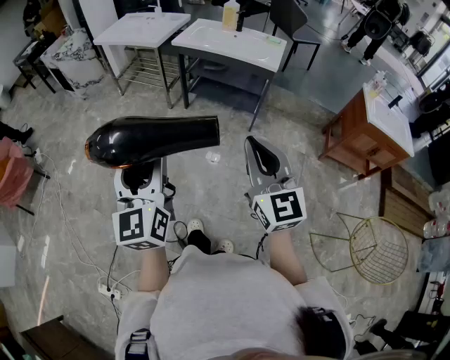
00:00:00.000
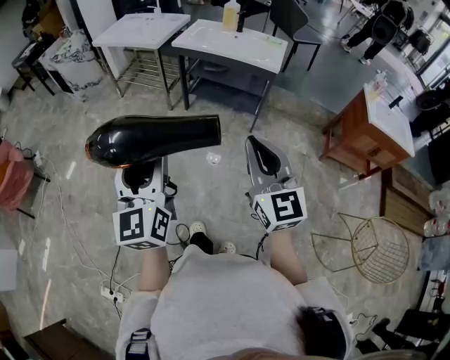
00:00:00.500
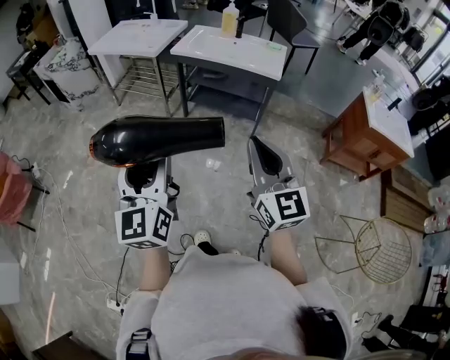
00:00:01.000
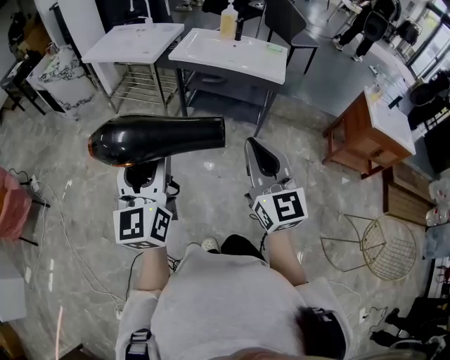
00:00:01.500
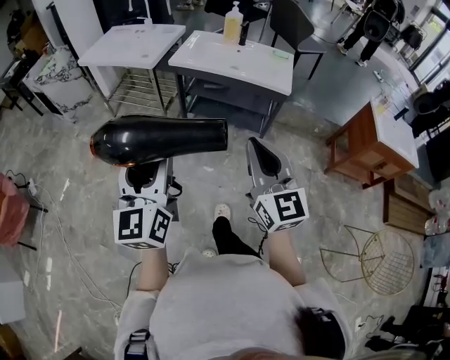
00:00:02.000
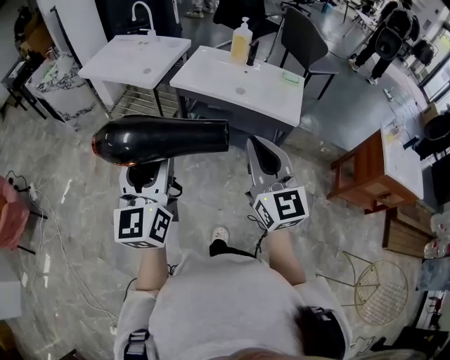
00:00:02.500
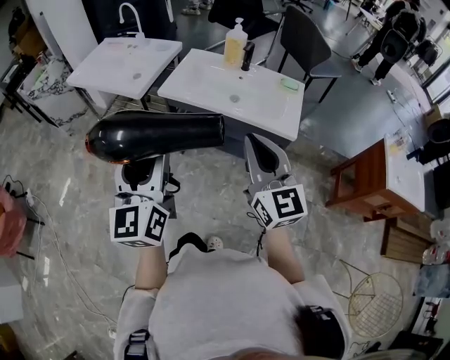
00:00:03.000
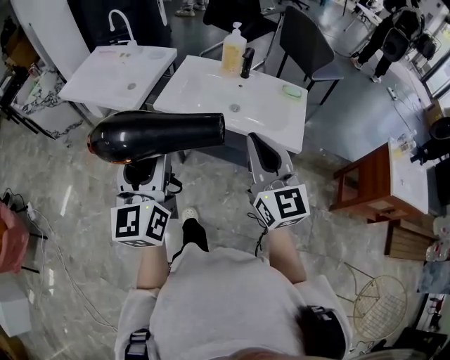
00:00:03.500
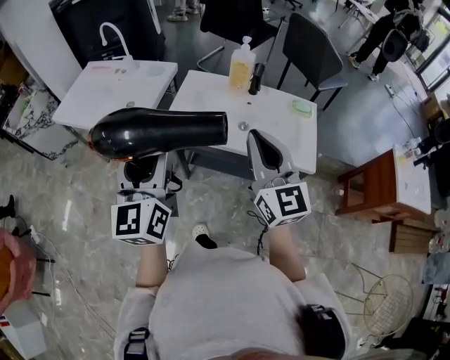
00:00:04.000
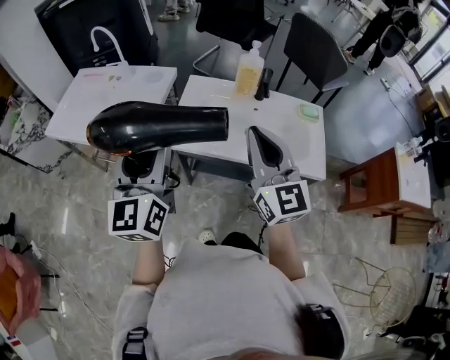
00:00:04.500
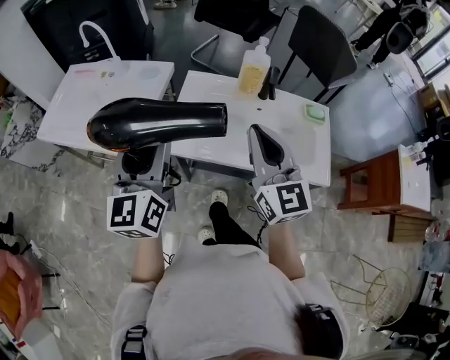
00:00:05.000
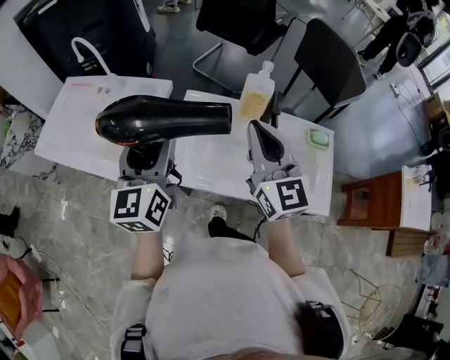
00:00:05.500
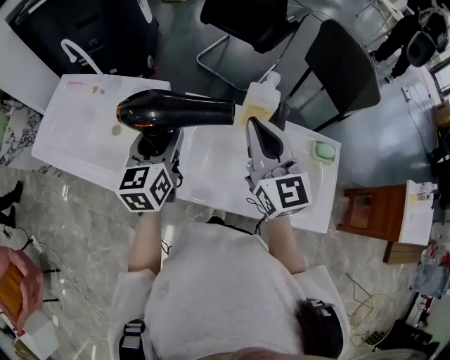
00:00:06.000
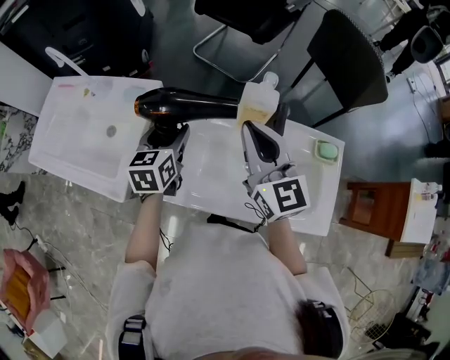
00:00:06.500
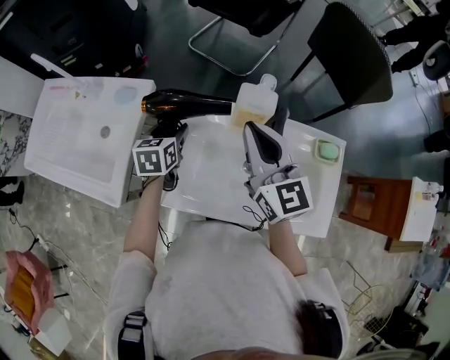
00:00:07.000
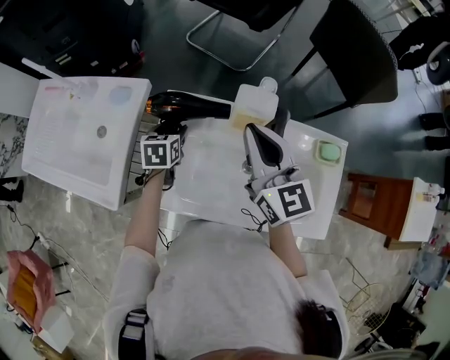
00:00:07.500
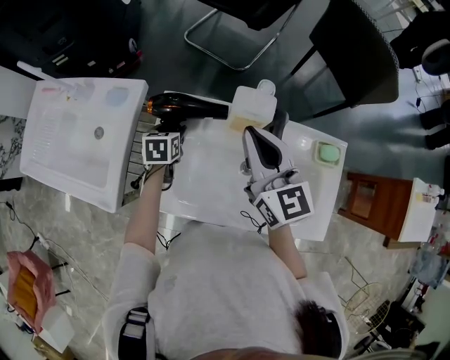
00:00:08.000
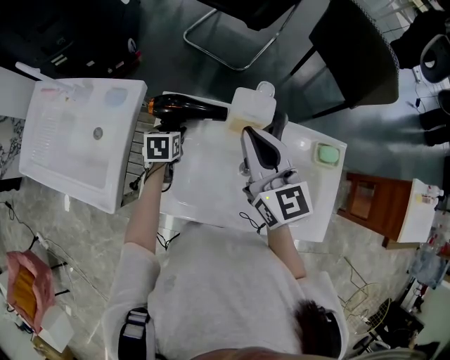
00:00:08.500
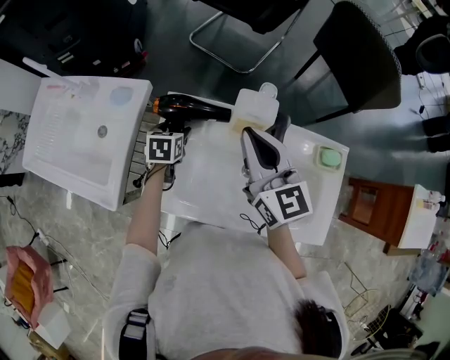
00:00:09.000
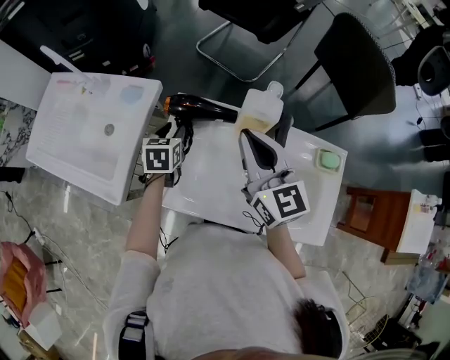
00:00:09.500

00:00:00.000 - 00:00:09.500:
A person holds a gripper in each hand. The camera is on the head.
00:00:00.000 - 00:00:02.000: Both grippers move forward, approximately 20 cm.
00:00:02.000 - 00:00:04.000: Both grippers are carried forward, about 50 cm.
00:00:04.000 - 00:00:05.500: The two grippers go some 25 cm forward.
00:00:05.500 - 00:00:07.500: The right gripper is displaced forward, downward and to the right by approximately 20 cm, while the left gripper travels downward and forward by some 35 cm, and tilts its fingers some 50 degrees downward.
00:00:07.500 - 00:00:09.500: The grippers stay close to where they were, moving slightly.

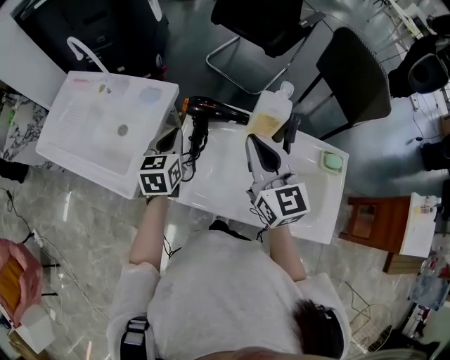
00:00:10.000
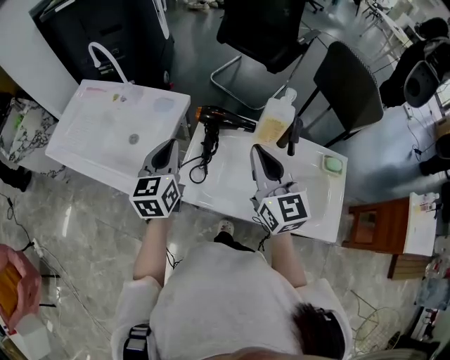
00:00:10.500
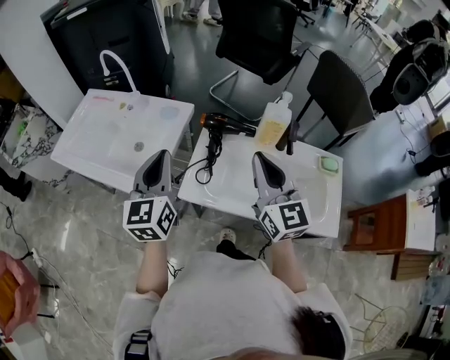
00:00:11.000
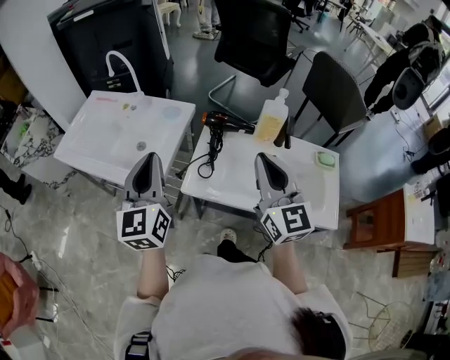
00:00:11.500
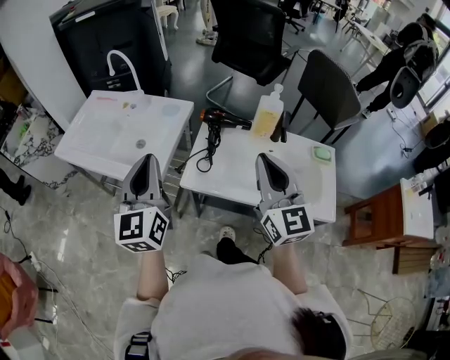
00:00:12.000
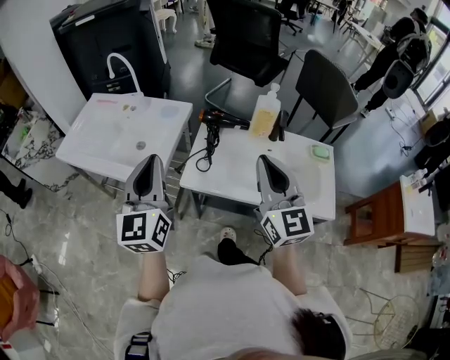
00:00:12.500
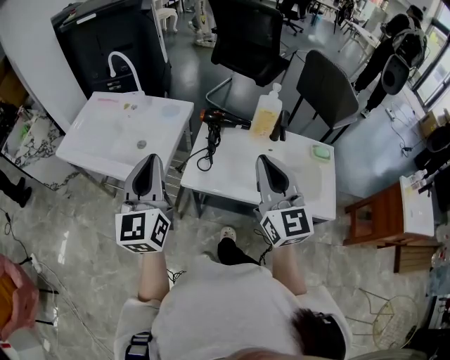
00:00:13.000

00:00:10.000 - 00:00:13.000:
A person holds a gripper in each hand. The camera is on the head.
00:00:10.000 - 00:00:11.500: The left gripper heads upward, backward and to the left, covering some 30 cm, and angles its fingers upward, by roughly 30 degrees; the right gripper travels backward, upward and to the left by about 20 cm.
00:00:11.500 - 00:00:13.000: The two grippers go approximately 5 cm backward.

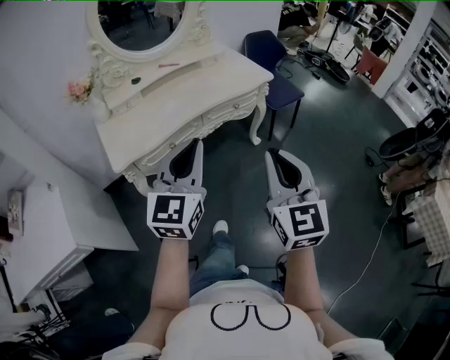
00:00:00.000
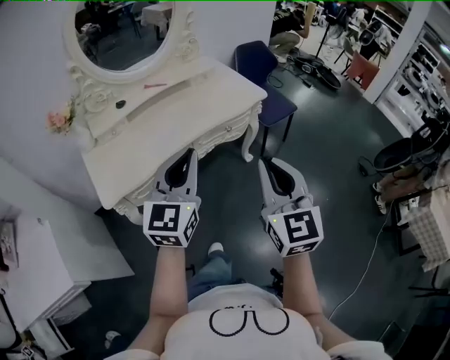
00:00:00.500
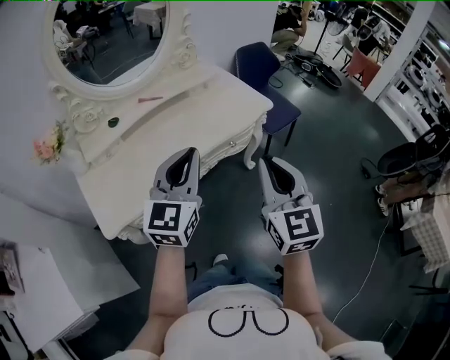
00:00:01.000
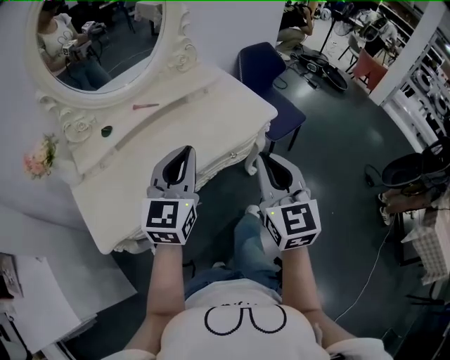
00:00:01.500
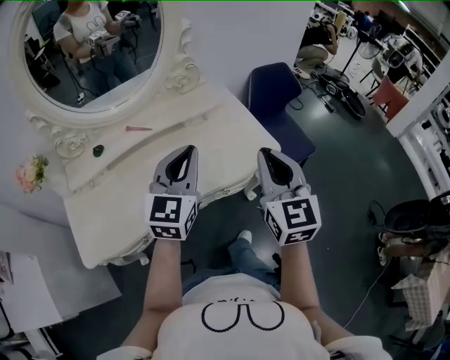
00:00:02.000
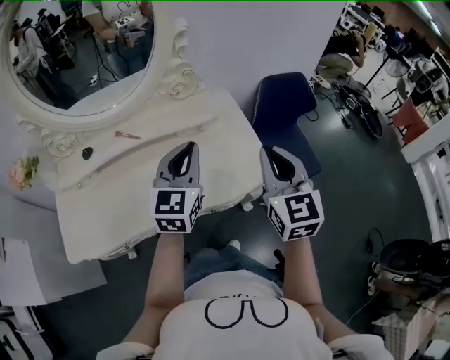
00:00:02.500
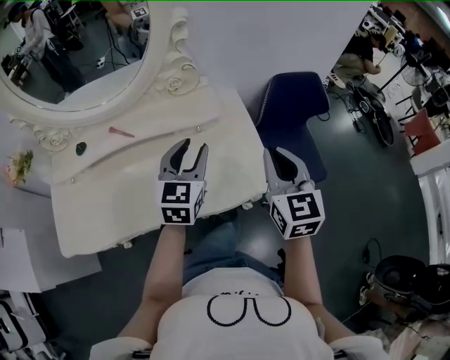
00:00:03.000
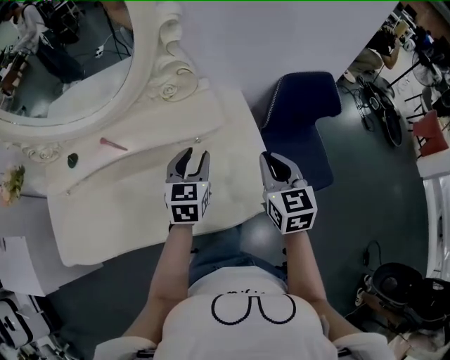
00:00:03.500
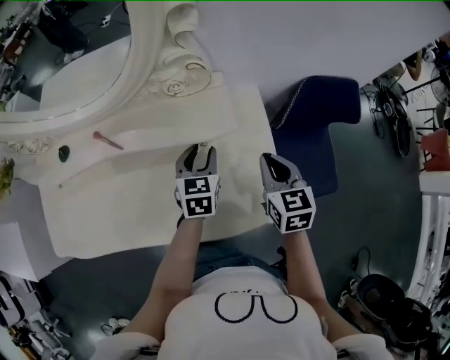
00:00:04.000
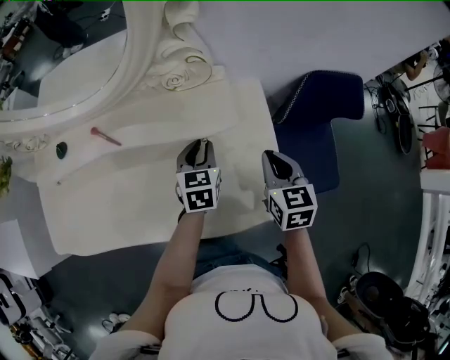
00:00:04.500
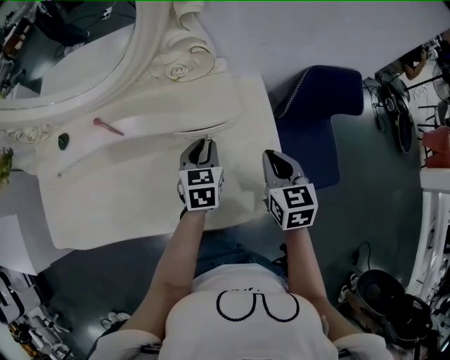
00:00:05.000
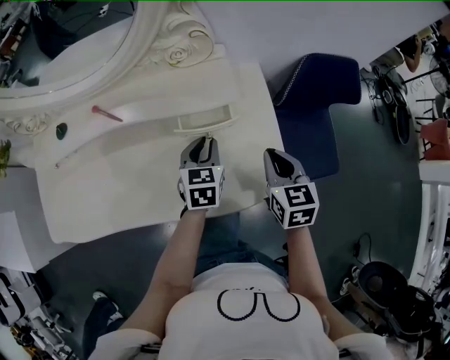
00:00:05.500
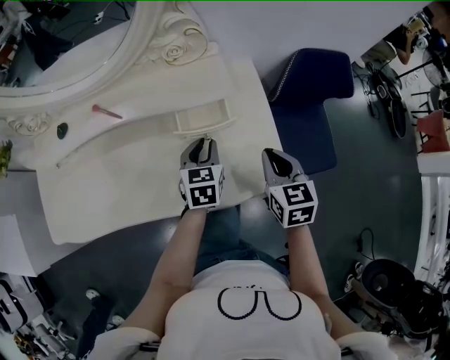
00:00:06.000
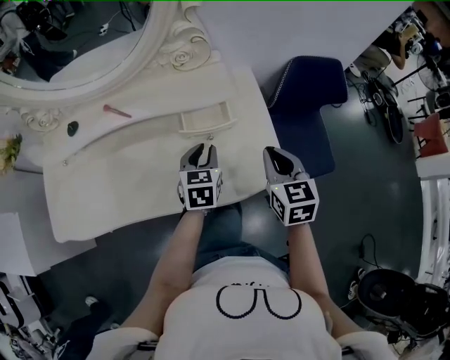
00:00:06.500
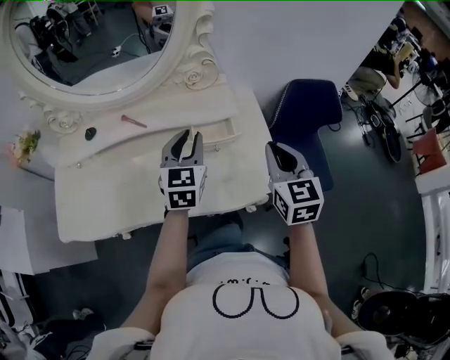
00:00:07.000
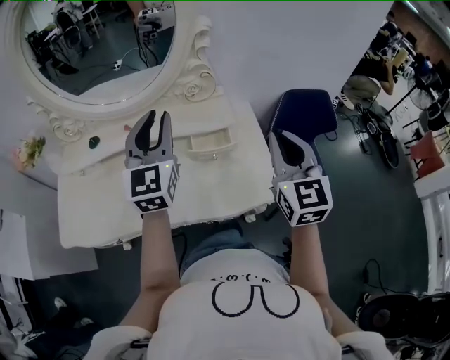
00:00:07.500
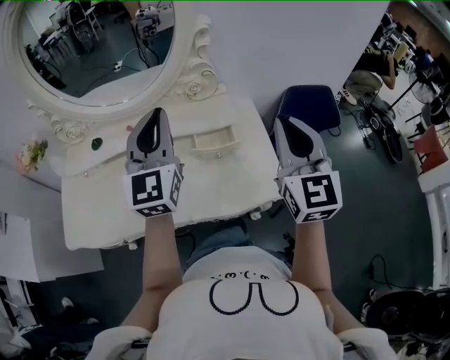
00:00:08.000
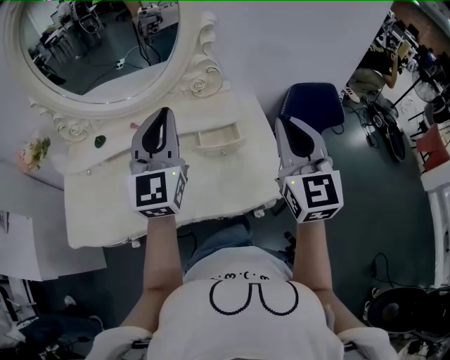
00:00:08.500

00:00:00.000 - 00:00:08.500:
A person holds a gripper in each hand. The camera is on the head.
00:00:00.000 - 00:00:02.000: Both grippers are carried forward, approximately 50 cm.
00:00:02.000 - 00:00:04.000: The two grippers go approximately 40 cm forward and downward. The left gripper tips its fingers downward by about 30 degrees, and opens; the right gripper turns by about 40 degrees.
00:00:04.000 - 00:00:06.500: Both grippers travel together backward, approximately 10 cm.
00:00:06.500 - 00:00:08.500: The two grippers go approximately 25 cm upward. The right gripper tilts its fingers about 30 degrees upward, while the left gripper tips its fingers upward by roughly 40 degrees, and closes its fingers.

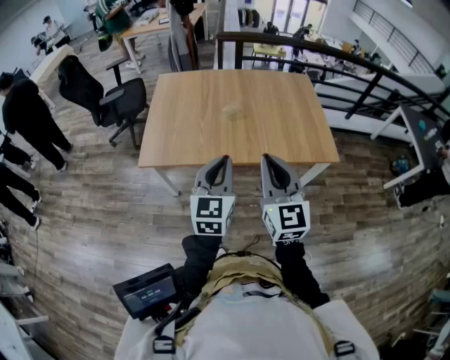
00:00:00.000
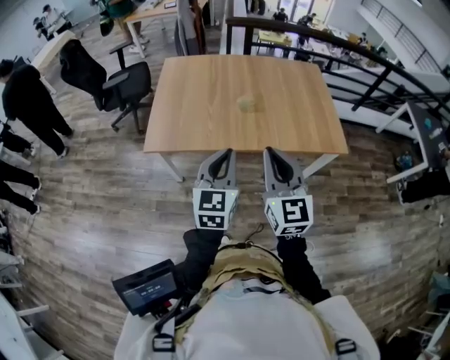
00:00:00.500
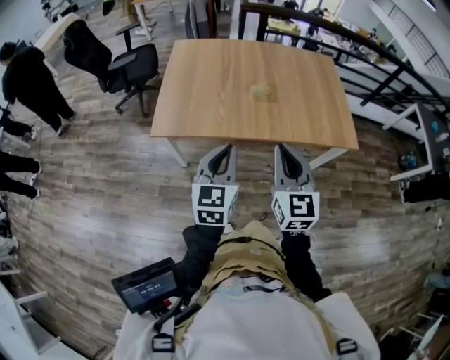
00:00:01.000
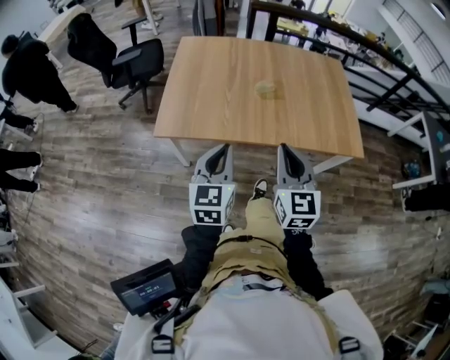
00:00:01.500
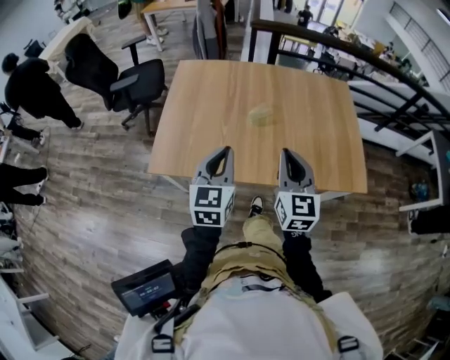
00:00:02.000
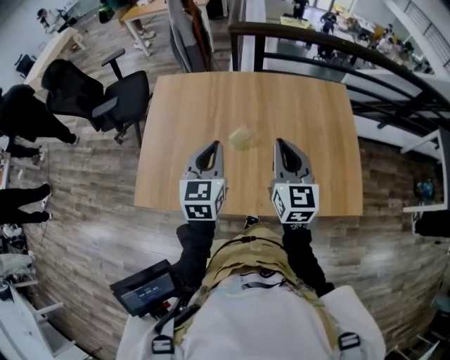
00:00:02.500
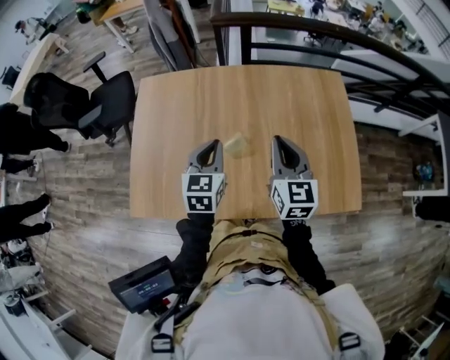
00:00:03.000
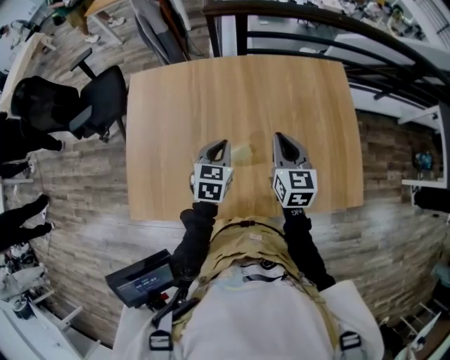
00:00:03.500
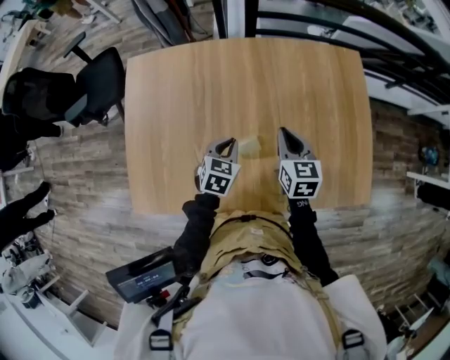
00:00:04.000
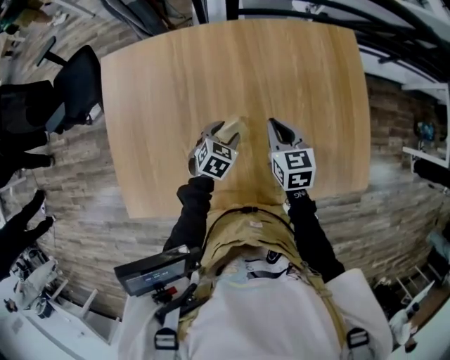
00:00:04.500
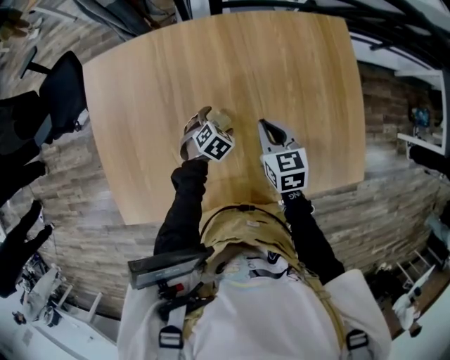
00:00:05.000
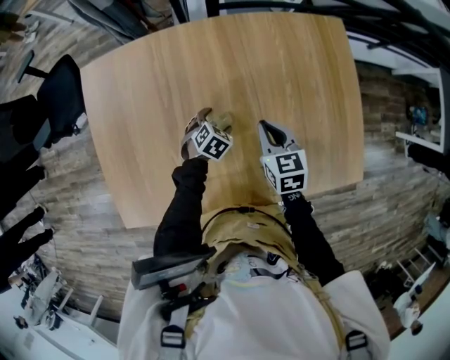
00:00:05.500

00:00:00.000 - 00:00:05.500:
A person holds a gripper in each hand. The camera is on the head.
00:00:00.000 - 00:00:02.000: The left gripper shifts roughly 20 cm forward and to the left. The right gripper heads forward, covering roughly 20 cm.
00:00:02.000 - 00:00:03.500: The left gripper heads forward and downward, covering some 35 cm, and rotates approximately 30 degrees. The right gripper goes roughly 30 cm forward.
00:00:03.500 - 00:00:05.500: The right gripper moves downward and forward, about 15 cm, and rotates roughly 20 degrees. Meanwhile the left gripper shifts about 25 cm downward, turns by some 40 degrees, and opens up.
